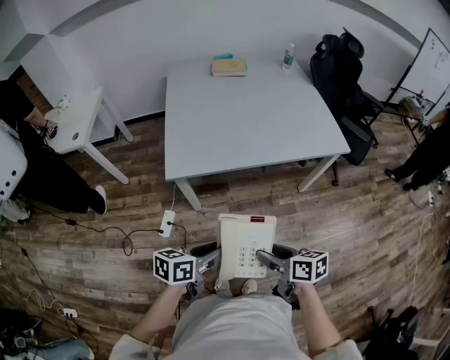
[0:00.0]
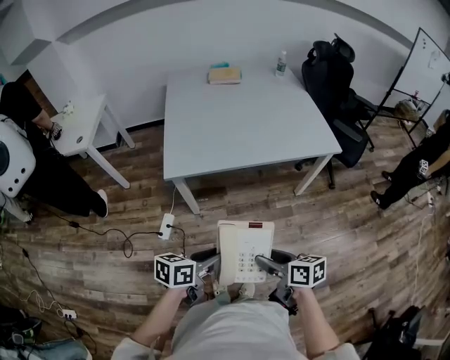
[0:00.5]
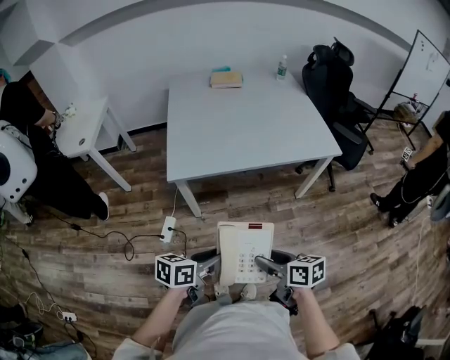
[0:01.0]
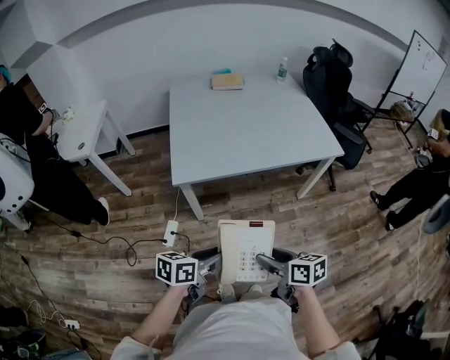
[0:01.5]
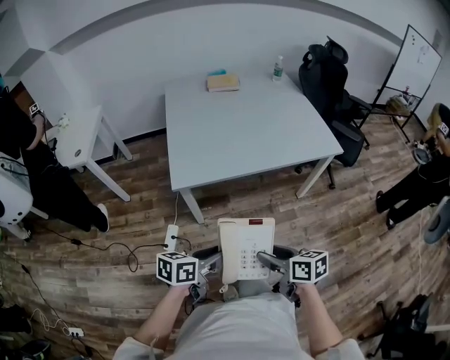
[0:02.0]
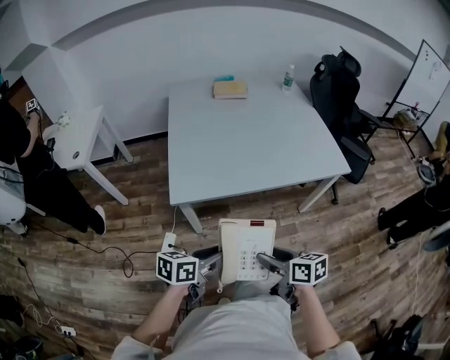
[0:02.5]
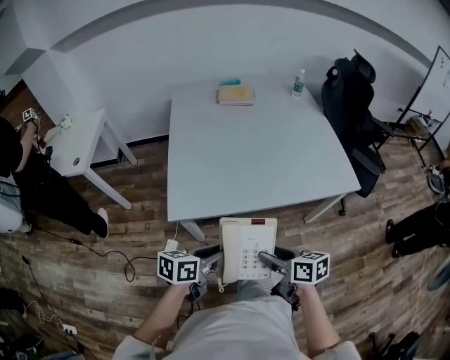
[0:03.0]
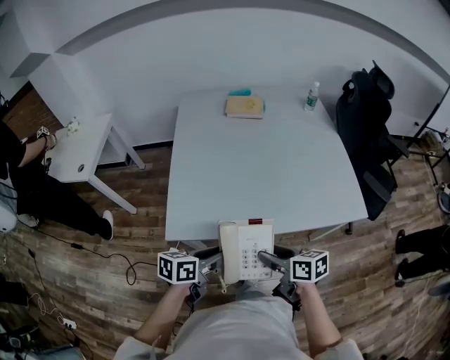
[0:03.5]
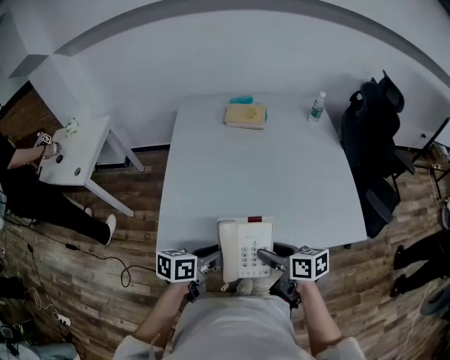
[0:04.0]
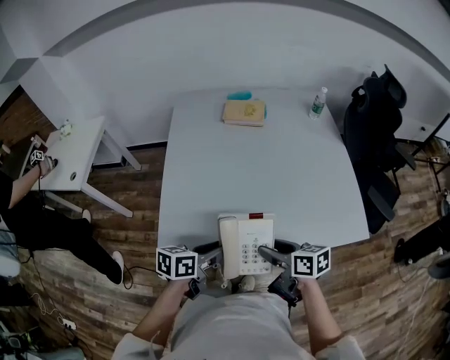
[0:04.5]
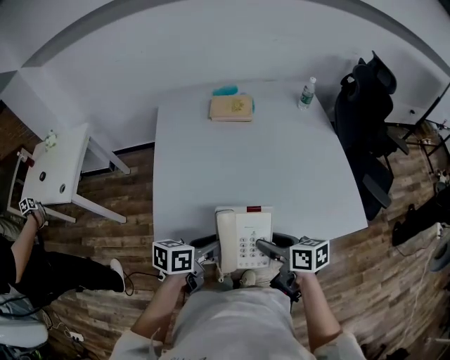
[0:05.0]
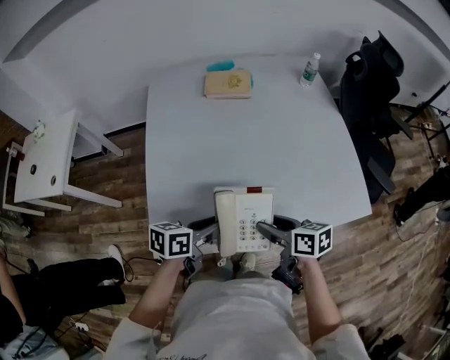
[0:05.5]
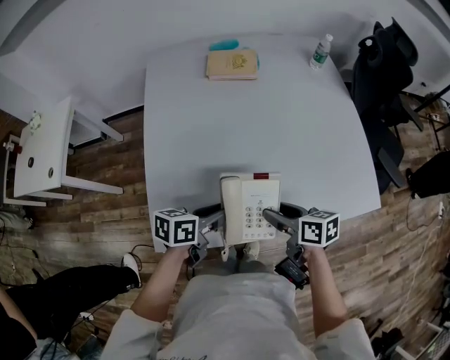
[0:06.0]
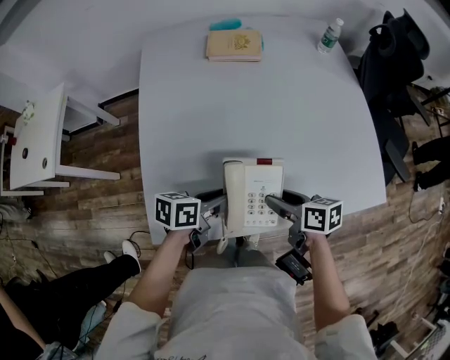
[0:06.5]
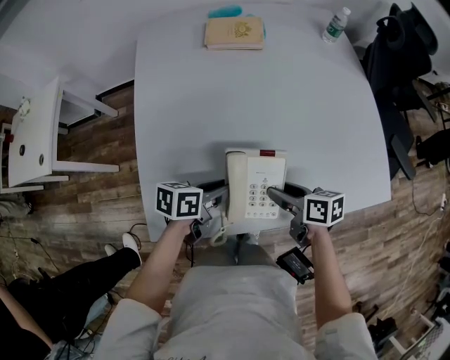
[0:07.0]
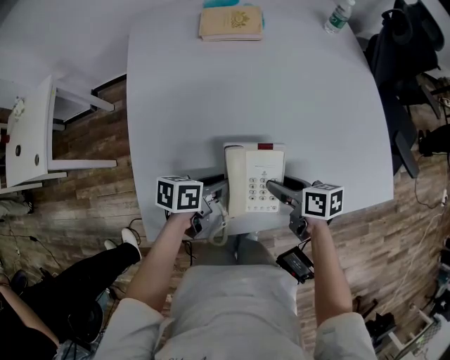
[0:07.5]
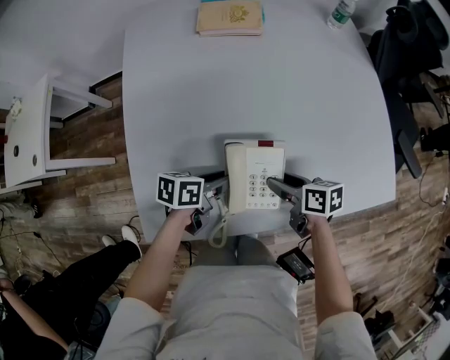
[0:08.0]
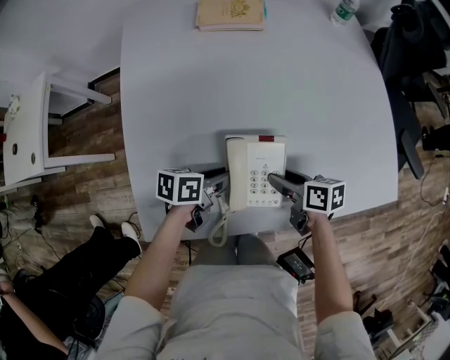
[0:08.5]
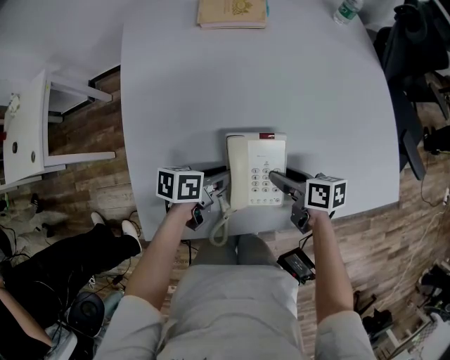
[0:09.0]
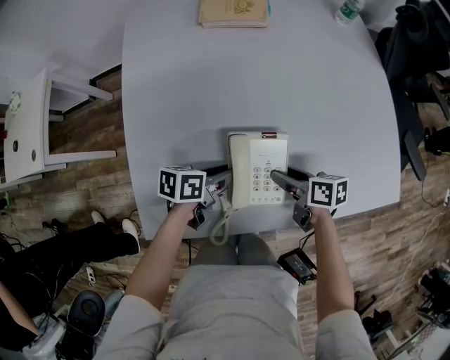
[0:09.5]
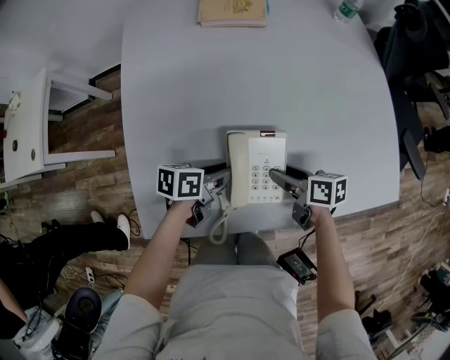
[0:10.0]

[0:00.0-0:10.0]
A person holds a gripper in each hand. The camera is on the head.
0:00.0 to 0:02.0: The right gripper moves some 5 cm.
0:02.0 to 0:04.0: Both grippers travel together forward, about 40 cm.
0:04.0 to 0:06.0: The two grippers go about 15 cm forward and downward.
0:06.0 to 0:08.0: Both grippers move downward and forward, some 15 cm.
0:08.0 to 0:10.0: The grippers stay close to where they were, moving slightly.

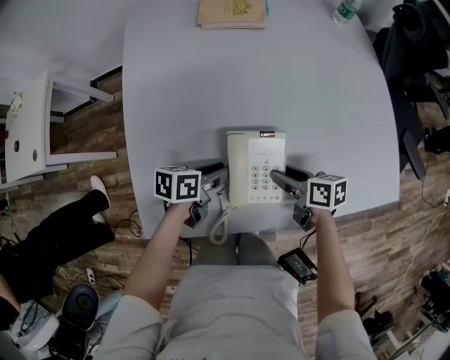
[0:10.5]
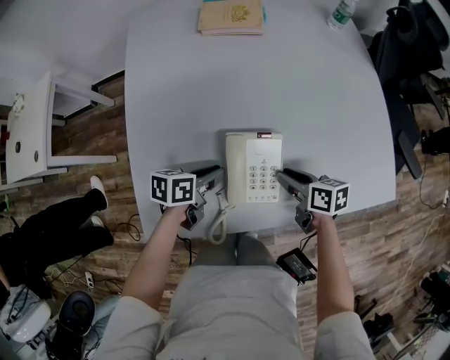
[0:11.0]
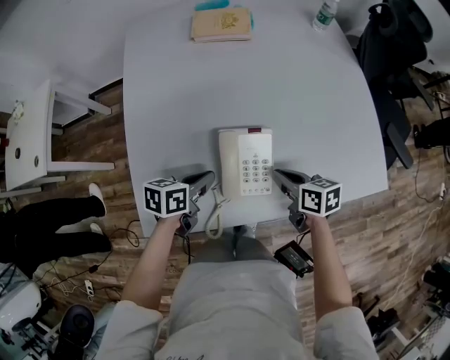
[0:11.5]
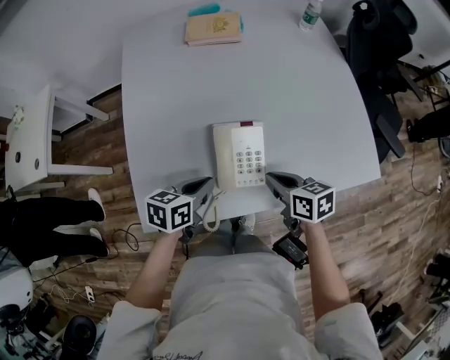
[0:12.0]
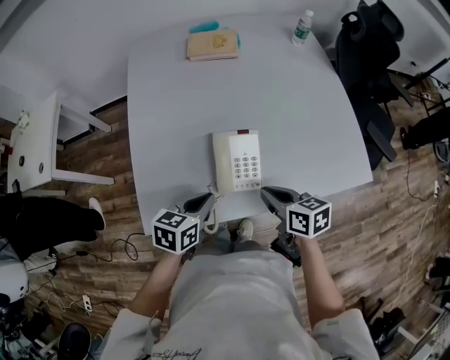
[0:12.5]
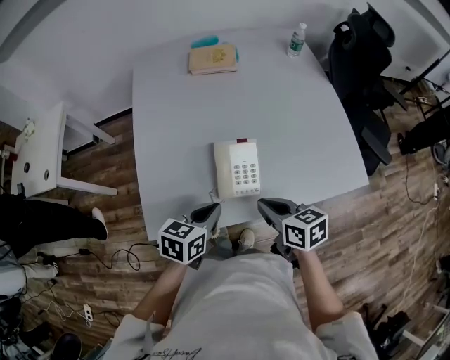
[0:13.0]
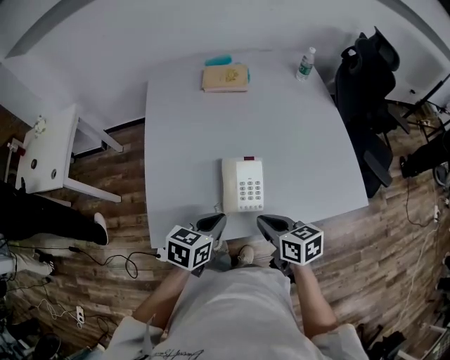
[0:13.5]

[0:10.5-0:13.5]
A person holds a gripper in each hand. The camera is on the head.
0:10.5 to 0:12.0: Both grippers move upward and backward, about 10 cm. The right gripper closes its fingers. The left gripper closes.
0:12.0 to 0:13.5: Both grippers travel together upward and backward, roughly 10 cm.

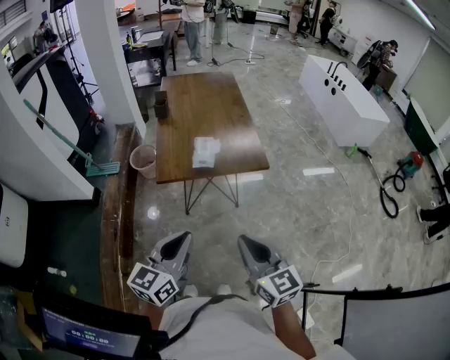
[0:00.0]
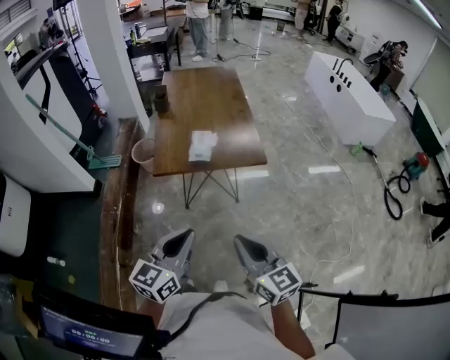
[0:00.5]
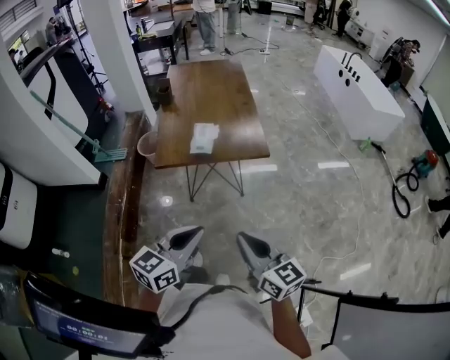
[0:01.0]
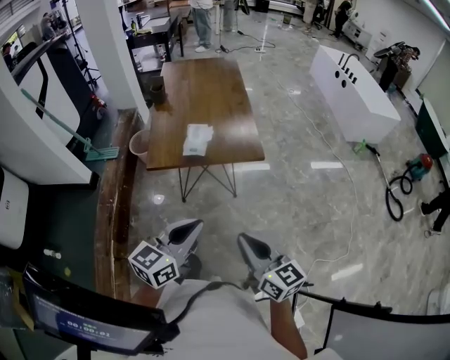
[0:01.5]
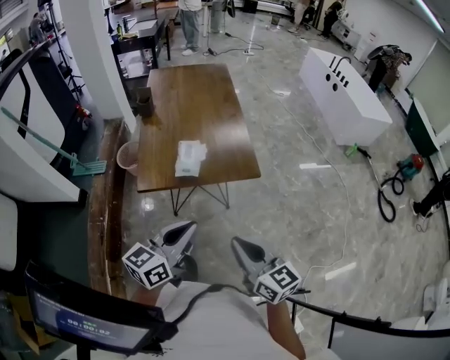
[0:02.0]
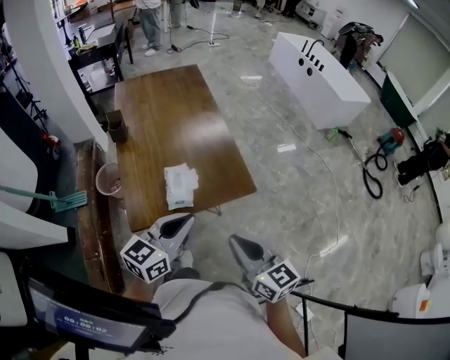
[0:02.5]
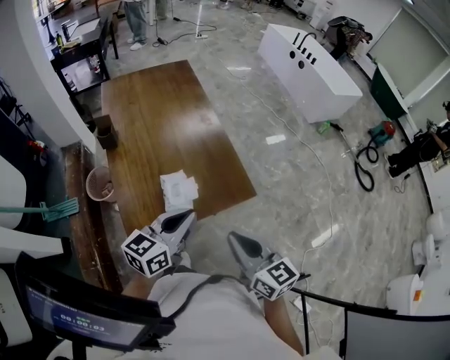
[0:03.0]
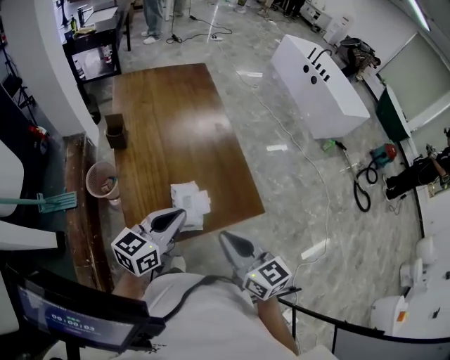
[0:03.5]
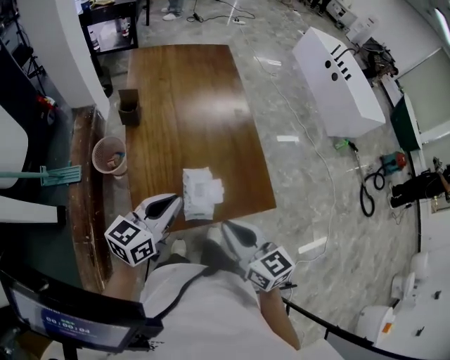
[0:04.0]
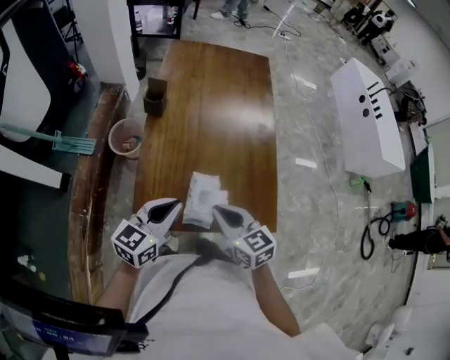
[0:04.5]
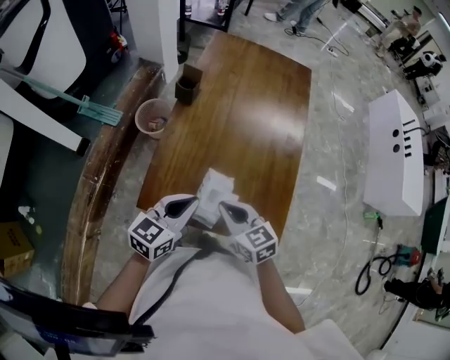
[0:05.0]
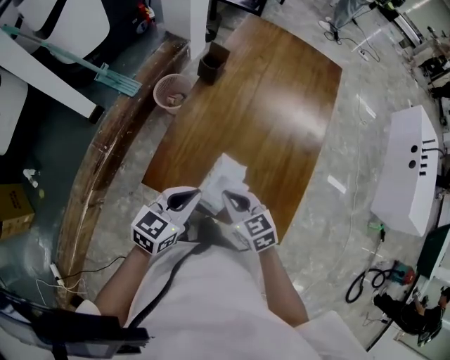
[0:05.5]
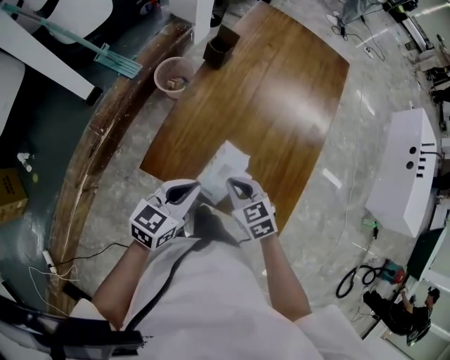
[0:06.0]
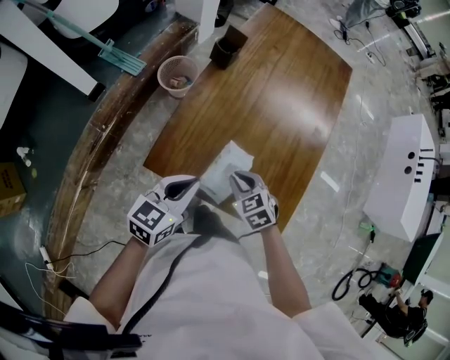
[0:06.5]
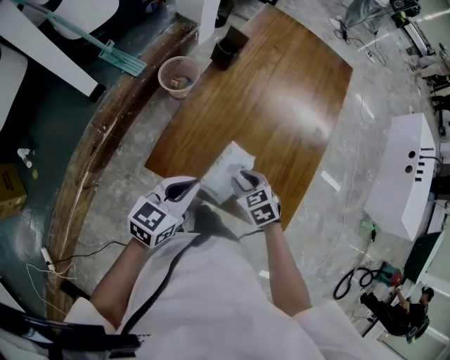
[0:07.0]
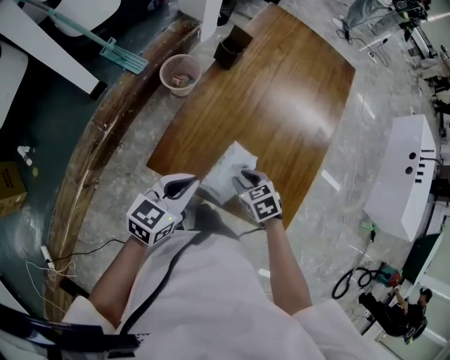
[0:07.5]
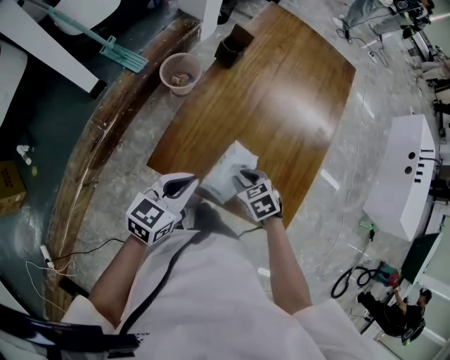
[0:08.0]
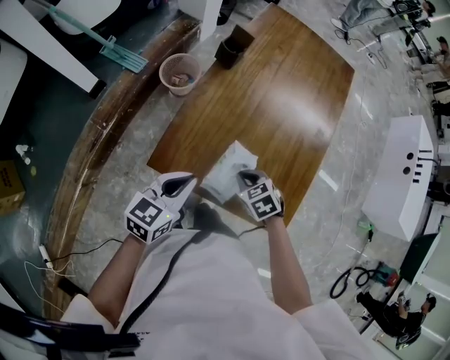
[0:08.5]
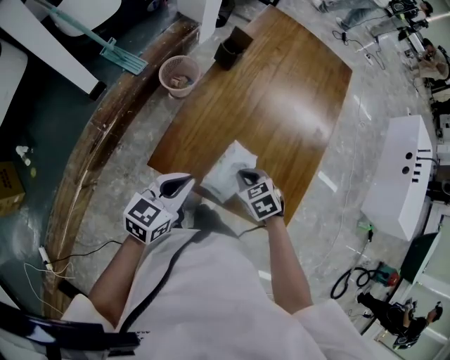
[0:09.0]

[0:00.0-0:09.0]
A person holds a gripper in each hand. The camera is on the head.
0:00.0 to 0:02.0: The right gripper travels forward by about 10 cm; the left gripper travels forward and to the right by roughly 15 cm.
0:02.0 to 0:04.5: The right gripper moves about 40 cm, and swivels about 20 degrees. Meanwhile the left gripper moves about 35 cm.
0:04.5 to 0:07.0: The left gripper travels downward by about 5 cm, and changes its angle by some 20 degrees. Meanwhile the right gripper travels downward by some 15 cm, swivels roughly 40 degrees, and opens its fingers.
0:07.0 to 0:09.0: The right gripper closes up.

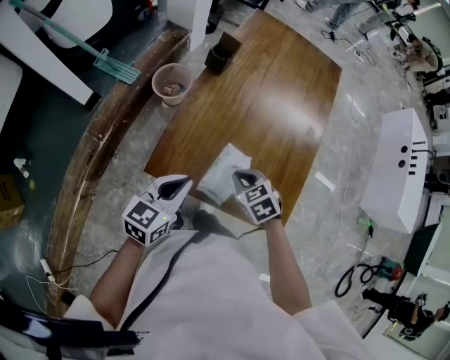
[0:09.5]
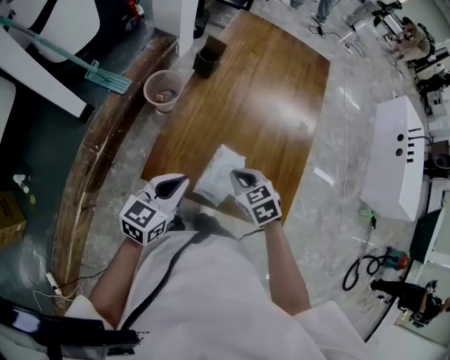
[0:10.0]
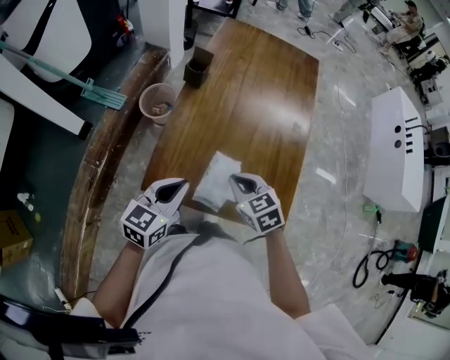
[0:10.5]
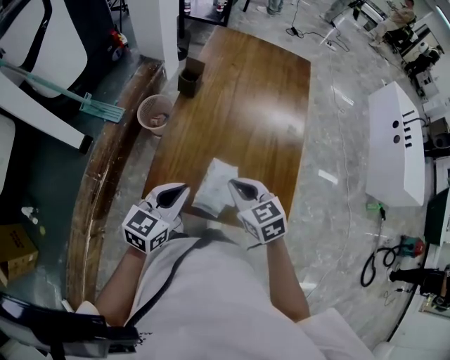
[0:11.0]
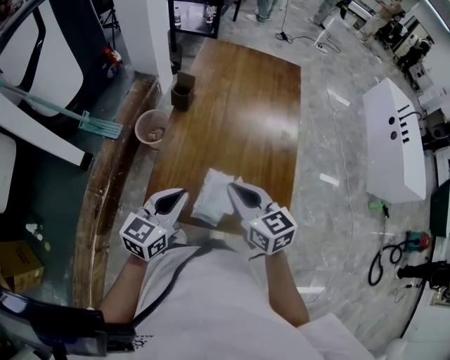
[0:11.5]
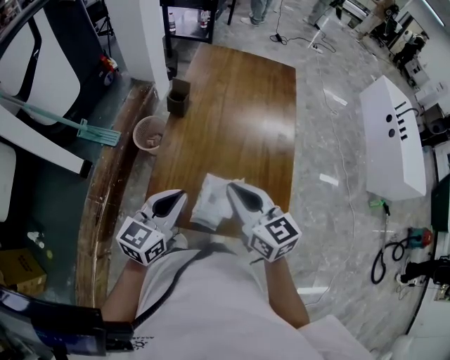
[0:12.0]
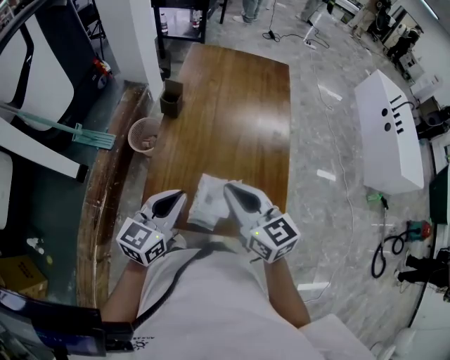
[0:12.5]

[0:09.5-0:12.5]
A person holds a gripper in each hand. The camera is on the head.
0:09.5 to 0:11.0: The right gripper is displaced upward by roughly 10 cm, and rotates about 20 degrees.
0:11.0 to 0:12.5: The left gripper travels upward by about 5 cm; the right gripper travels upward by some 10 cm, and changes its angle by approximately 30 degrees.

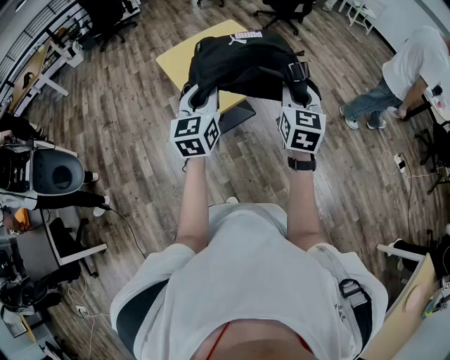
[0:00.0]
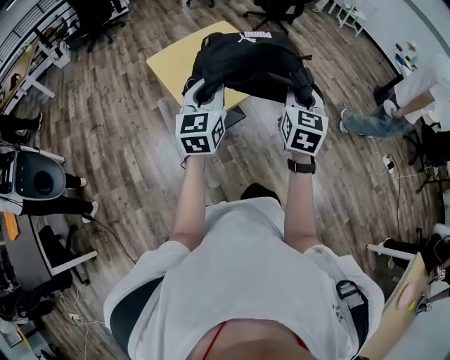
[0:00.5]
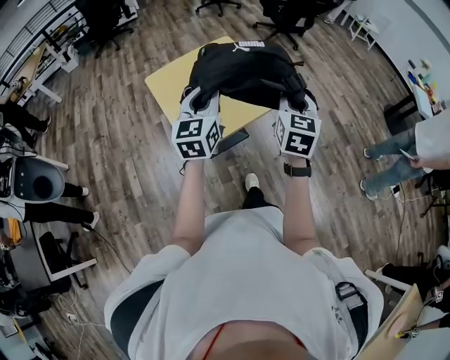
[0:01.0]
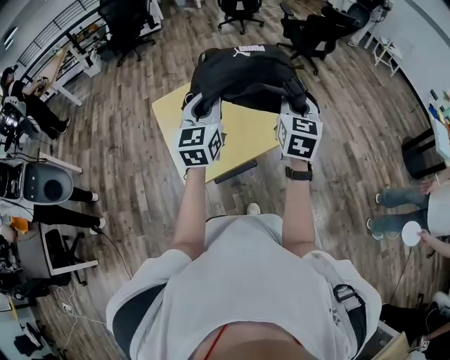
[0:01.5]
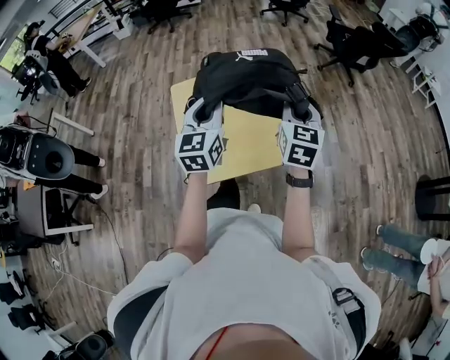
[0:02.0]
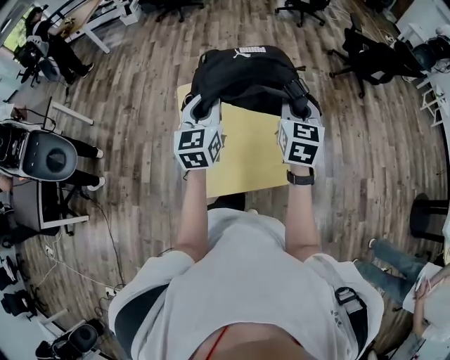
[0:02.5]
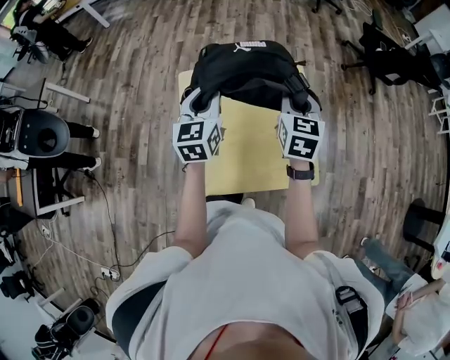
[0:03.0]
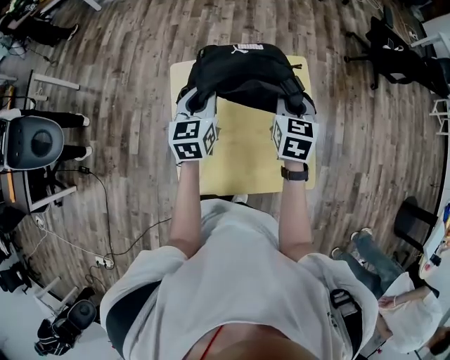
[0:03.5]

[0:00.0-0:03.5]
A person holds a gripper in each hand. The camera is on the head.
0:00.0 to 0:02.0: Both grippers move forward, approximately 40 cm. The left gripper rotates some 20 degrees.
0:02.0 to 0:03.5: The two grippers go approximately 30 cm forward, downward and to the left. The right gripper rotates roughly 20 degrees.
